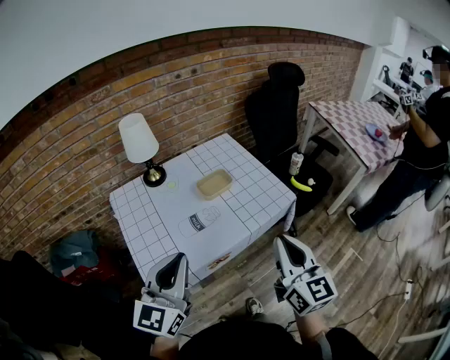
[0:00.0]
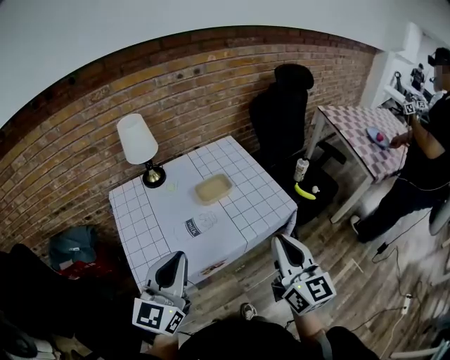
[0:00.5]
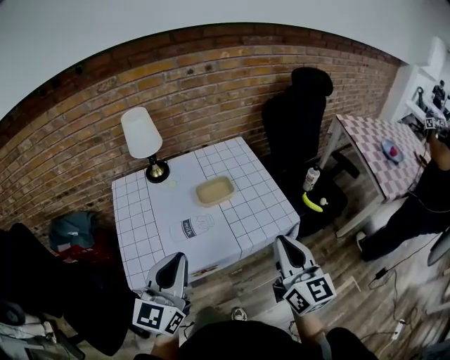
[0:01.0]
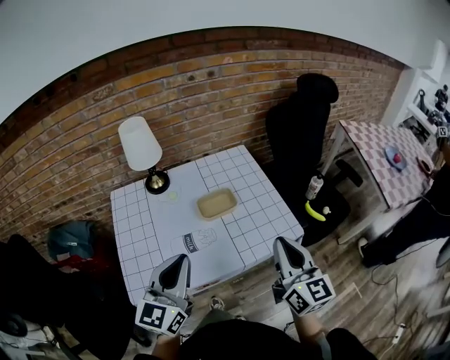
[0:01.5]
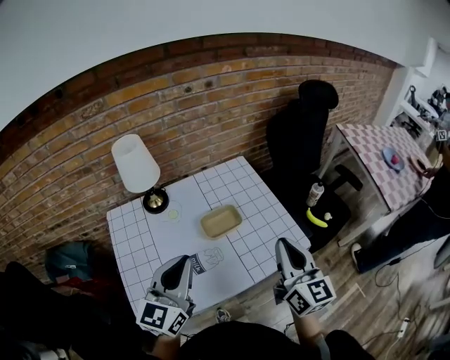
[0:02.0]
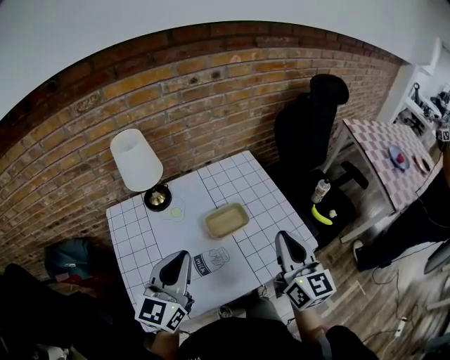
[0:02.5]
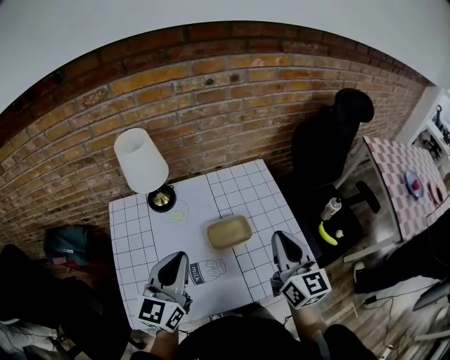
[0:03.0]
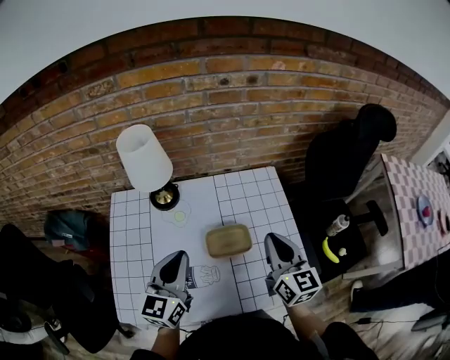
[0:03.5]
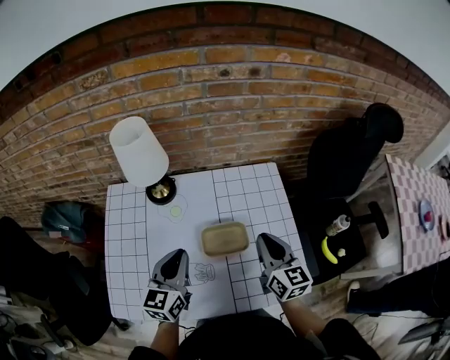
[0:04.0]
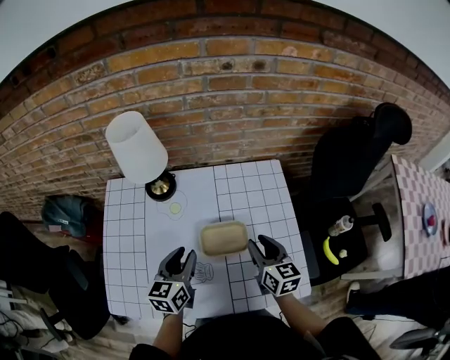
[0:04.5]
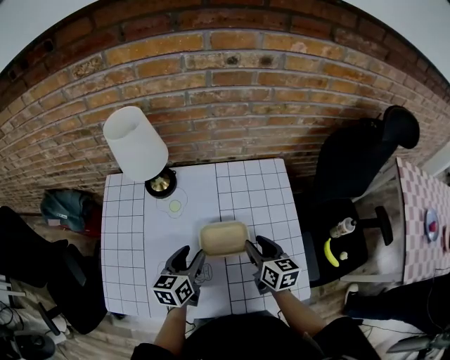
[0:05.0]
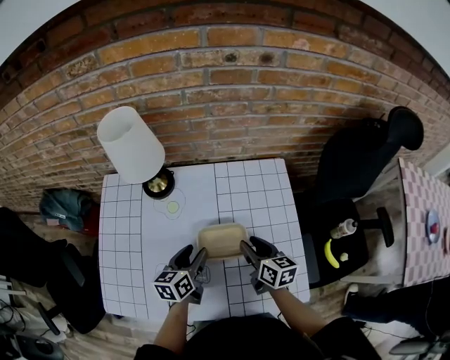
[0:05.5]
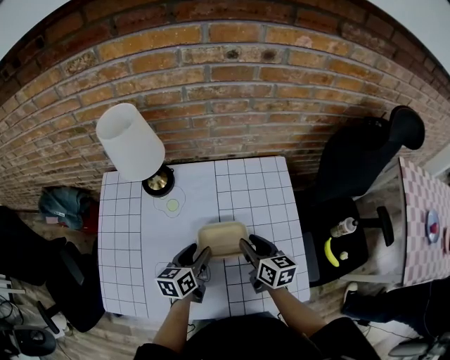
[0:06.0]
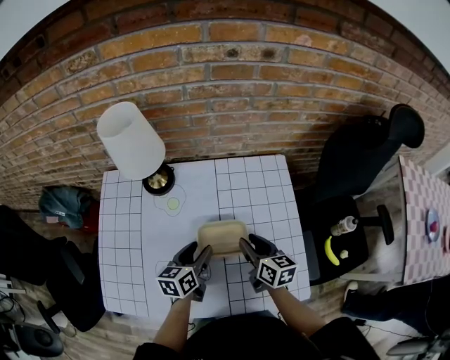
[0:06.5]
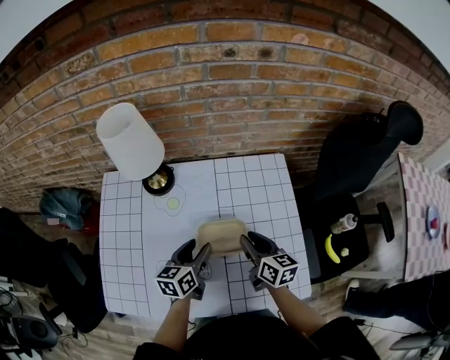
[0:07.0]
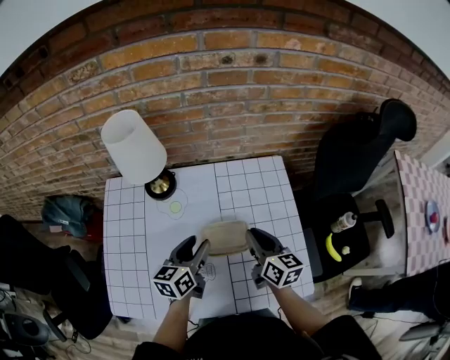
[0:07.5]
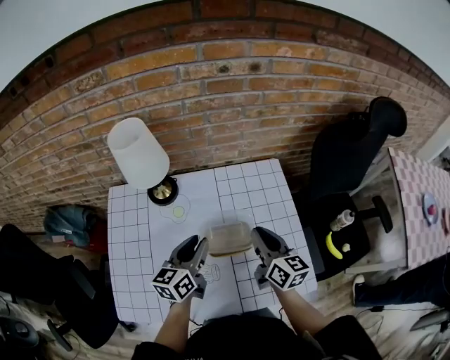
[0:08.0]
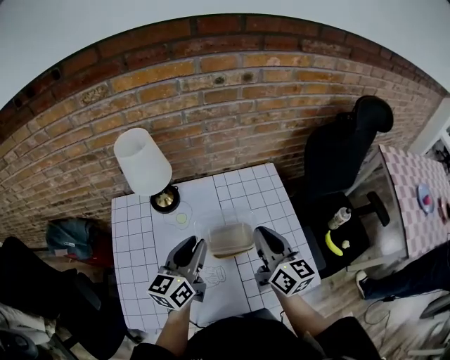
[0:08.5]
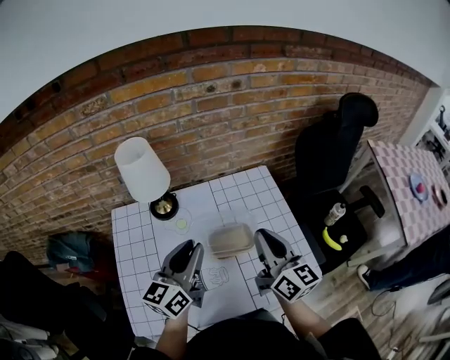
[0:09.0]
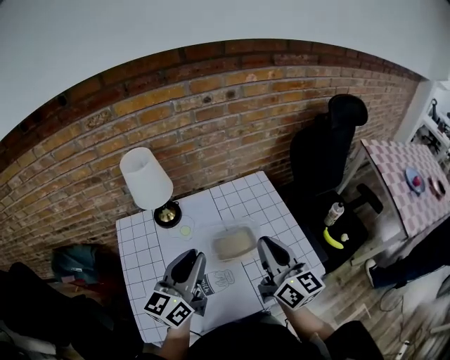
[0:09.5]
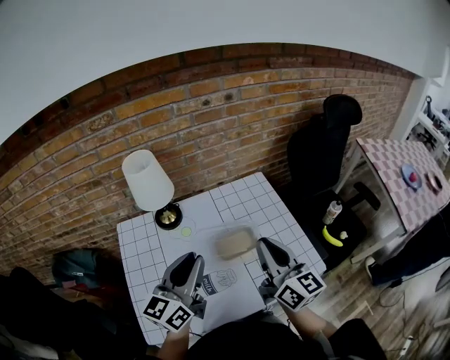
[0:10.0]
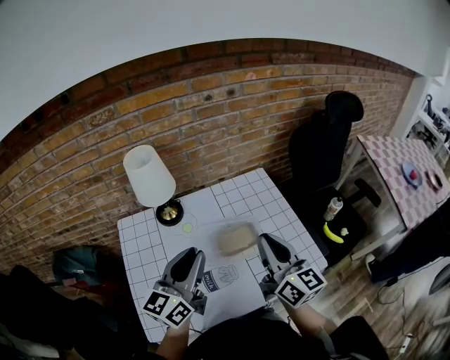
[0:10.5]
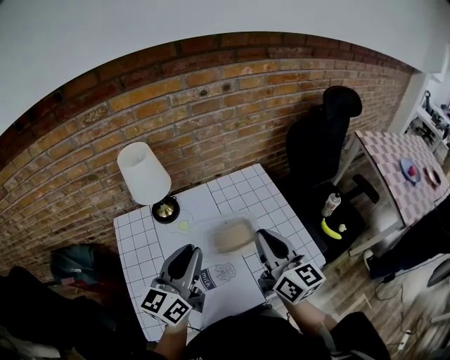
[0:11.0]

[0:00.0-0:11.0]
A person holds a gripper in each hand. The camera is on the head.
0:00.0 to 0:02.0: Both grippers move forward, about 20 cm.
0:02.0 to 0:03.5: The left gripper shifts some 15 cm forward and downward, and changes its angle by about 20 degrees. Meanwhile the right gripper goes approximately 20 cm forward, and turns by roughly 20 degrees.
0:03.5 to 0:05.5: The grippers both shift downward by some 20 cm. The right gripper rotates about 30 degrees, and opens; the left gripper turns by some 30 degrees, and opens up.
0:05.5 to 0:07.5: Both grippers move upward, about 5 cm. The right gripper closes.
0:07.5 to 0:09.0: The right gripper is displaced upward and backward by about 20 cm, and swivels approximately 20 degrees; the left gripper heads upward, covering approximately 15 cm, turns by approximately 20 degrees, and closes.
0:09.0 to 0:11.0: The left gripper ends up some 5 cm from where it was. Meanwhile the right gripper shifts by approximately 5 cm.

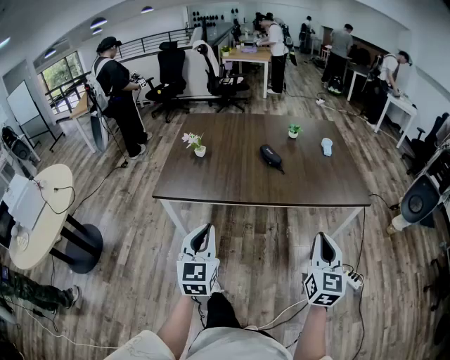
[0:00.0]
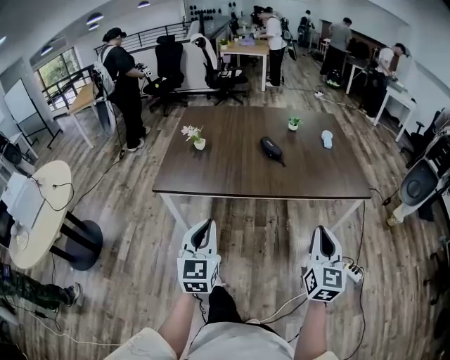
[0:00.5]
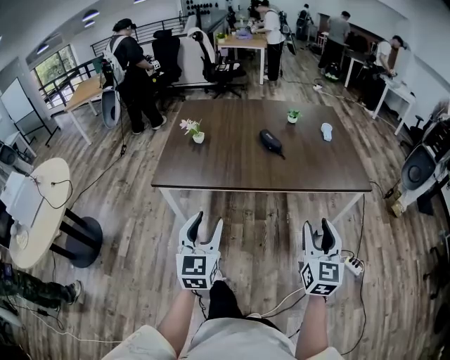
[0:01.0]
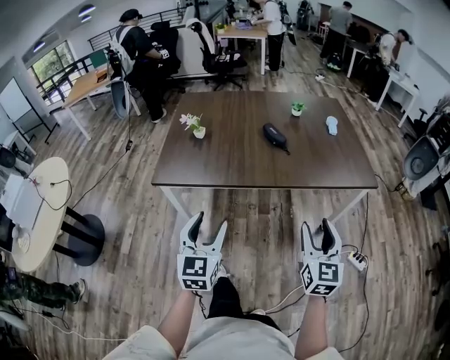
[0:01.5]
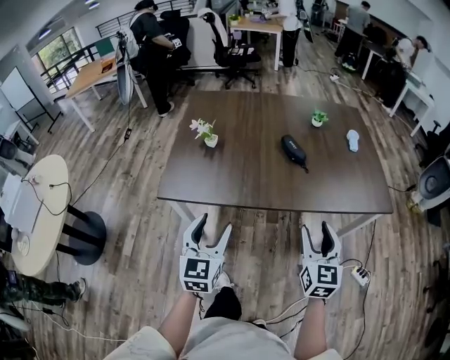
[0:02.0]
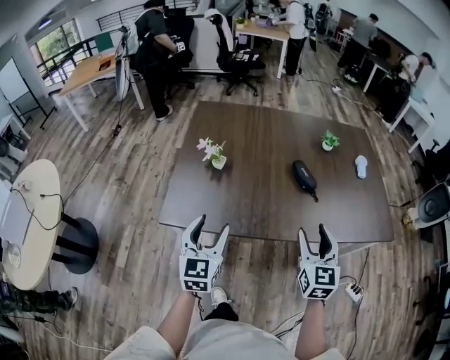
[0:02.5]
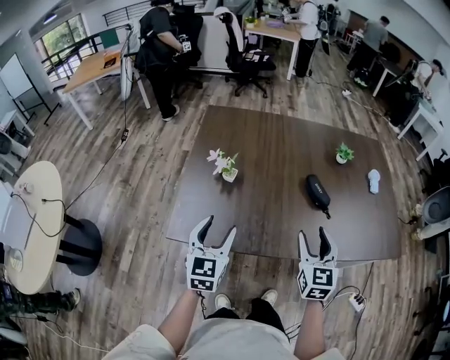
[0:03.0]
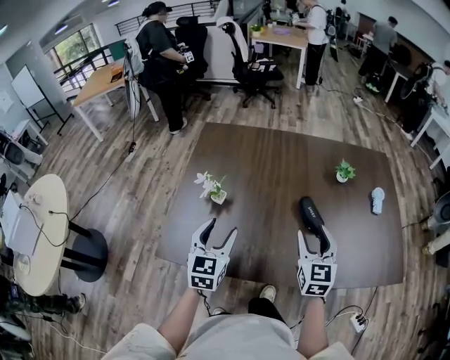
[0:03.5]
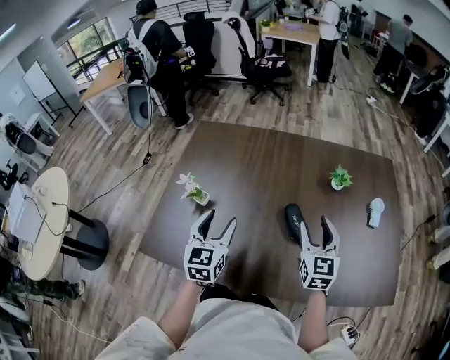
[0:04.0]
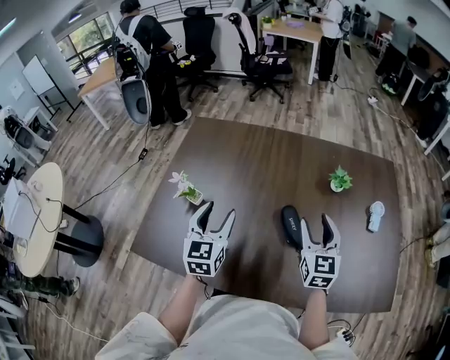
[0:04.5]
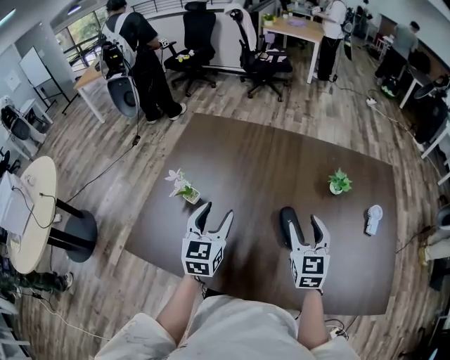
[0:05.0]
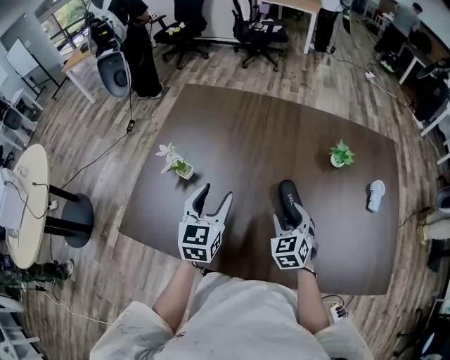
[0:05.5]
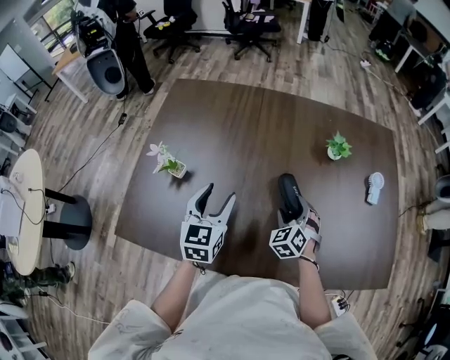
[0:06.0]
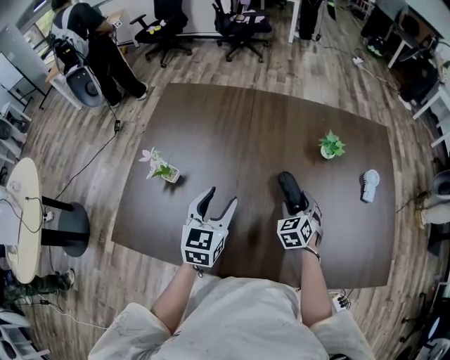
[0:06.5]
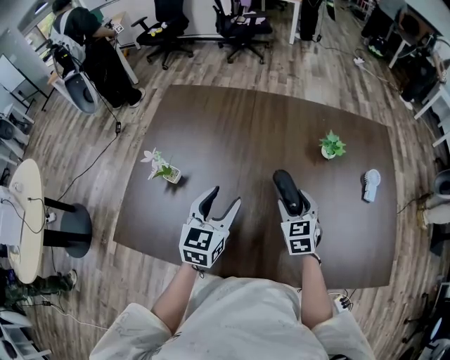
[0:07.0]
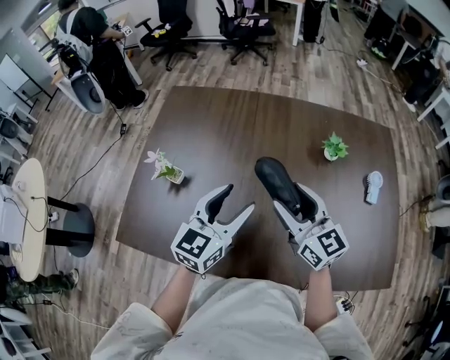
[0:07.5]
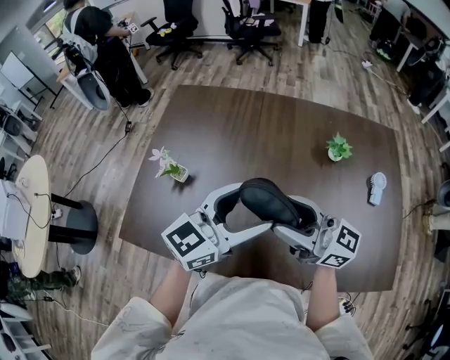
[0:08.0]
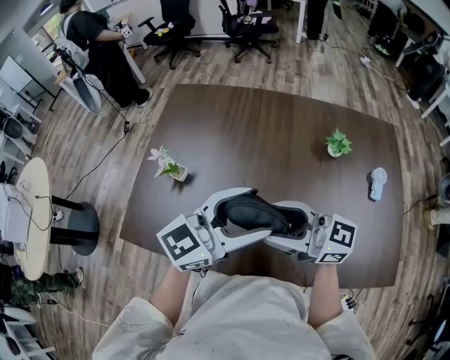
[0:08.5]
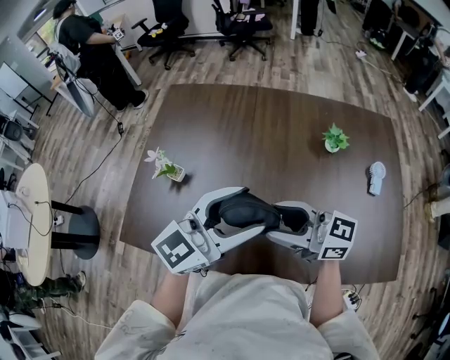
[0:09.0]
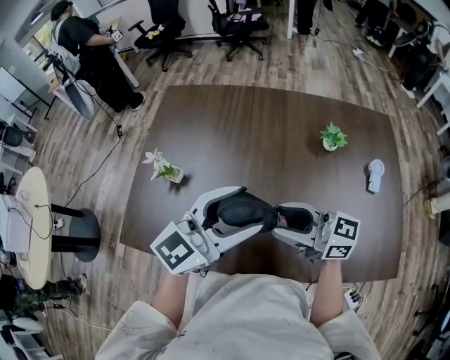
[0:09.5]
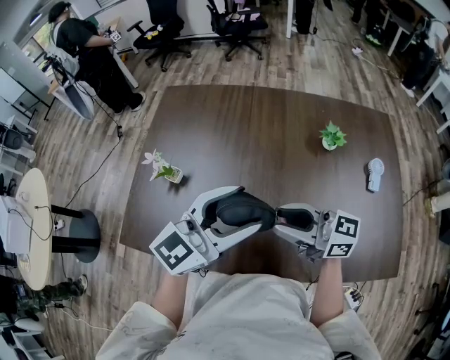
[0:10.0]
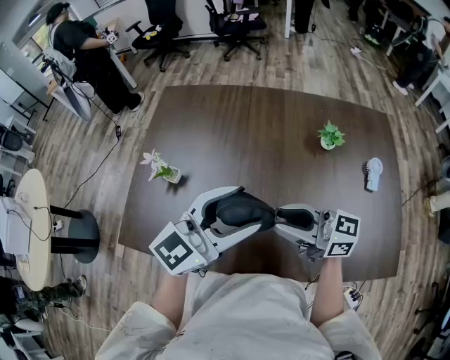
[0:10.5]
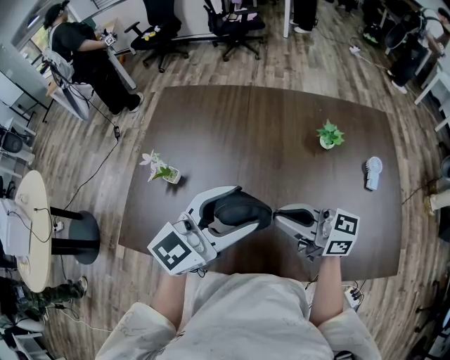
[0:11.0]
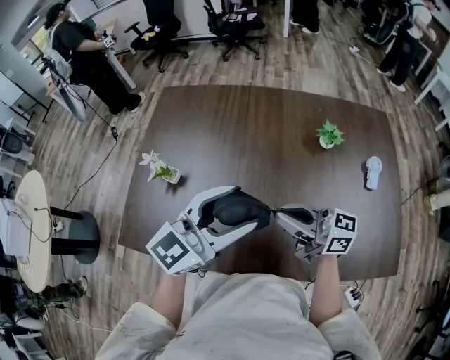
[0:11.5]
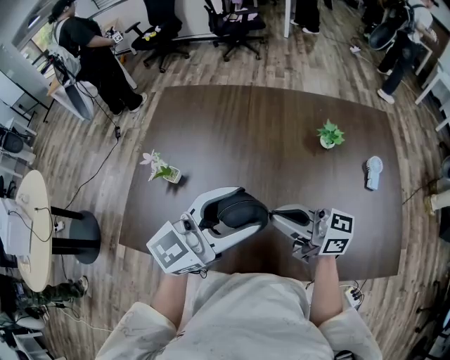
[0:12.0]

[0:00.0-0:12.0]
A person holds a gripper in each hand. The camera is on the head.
0:00.0 to 0:02.0: Both grippers travel together forward and to the left, approximately 15 cm. The left gripper opens. Meanwhile the right gripper opens.
0:02.0 to 0:04.0: The grippers both shift forward by some 40 cm.
0:04.0 to 0:06.0: The left gripper is displaced downward by roughly 5 cm. The right gripper moves downward, roughly 20 cm, and turns by some 50 degrees.
0:06.0 to 0:08.0: The left gripper travels upward and to the right by approximately 15 cm, and rotates some 40 degrees. The right gripper moves upward, about 25 cm, and points its fingers about 60 degrees further upward.
0:08.0 to 0:10.0: The right gripper shifts roughly 5 cm downward, and closes.
0:10.0 to 0:12.0: The right gripper closes up.

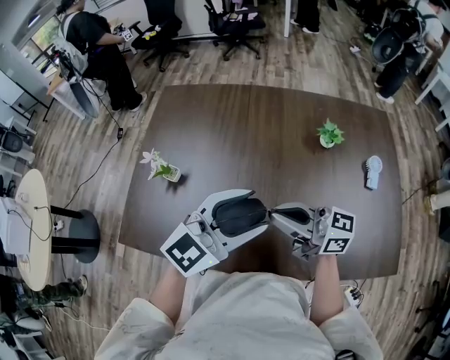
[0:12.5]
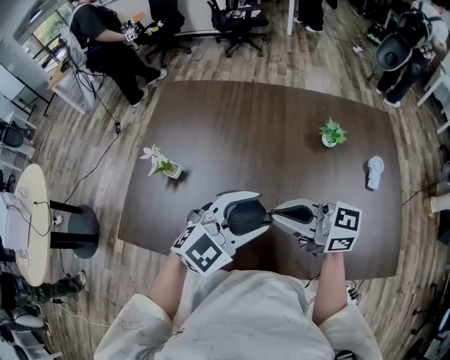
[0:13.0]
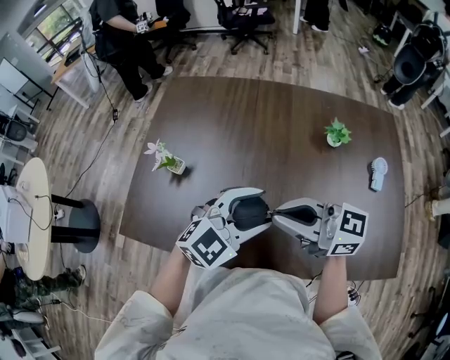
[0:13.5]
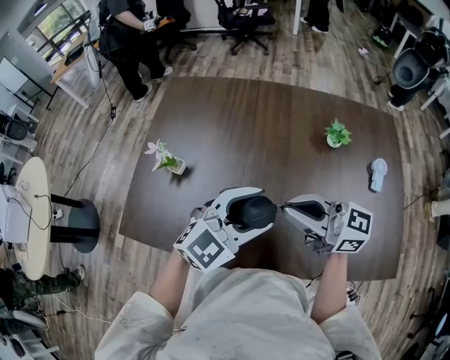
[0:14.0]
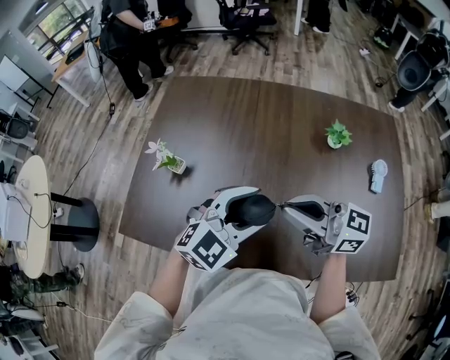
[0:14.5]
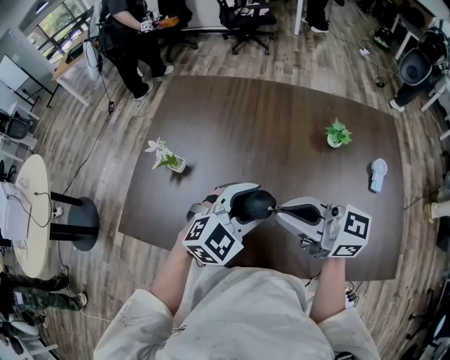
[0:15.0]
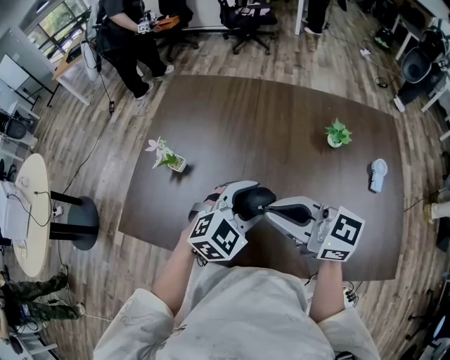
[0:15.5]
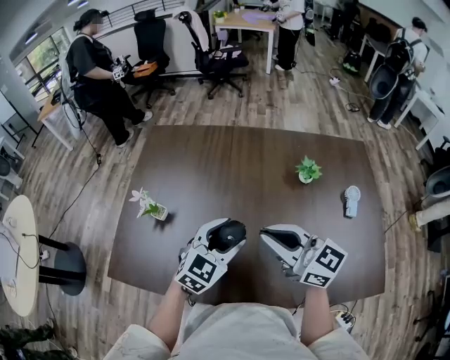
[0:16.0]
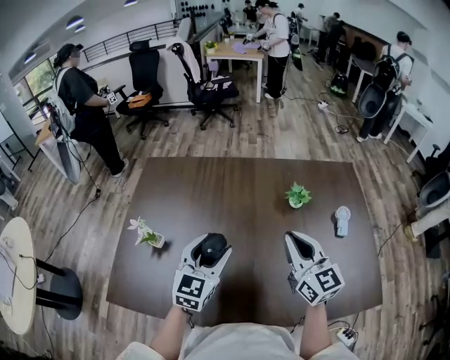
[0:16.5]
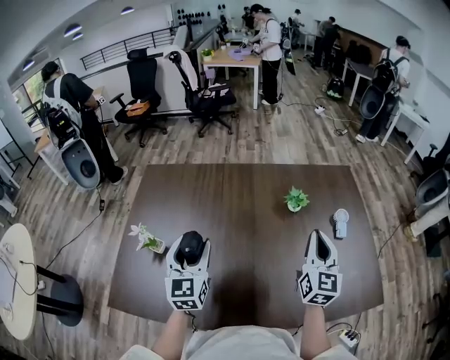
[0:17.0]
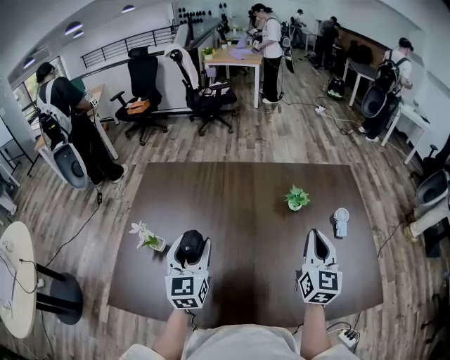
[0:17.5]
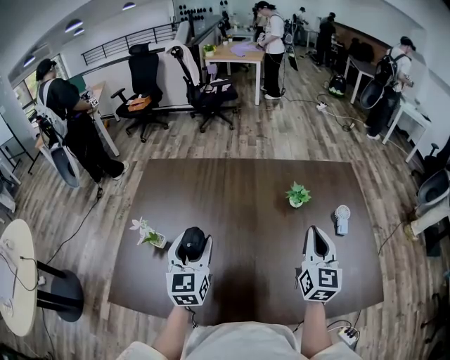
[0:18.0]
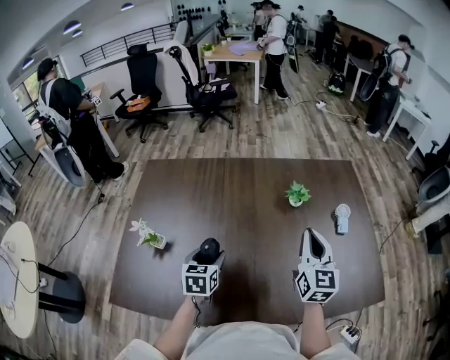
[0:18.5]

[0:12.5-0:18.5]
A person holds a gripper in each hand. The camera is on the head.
0:12.5 to 0:14.5: The left gripper travels downward by roughly 5 cm.
0:14.5 to 0:16.5: The left gripper heads forward, covering approximately 10 cm, and turns by roughly 30 degrees. Meanwhile the right gripper goes some 10 cm to the right and forward, and swivels some 60 degrees.
0:16.5 to 0:18.5: The left gripper shifts approximately 10 cm downward, and turns by about 30 degrees, while the right gripper is displaced to the right by some 5 cm, and turns by about 30 degrees.
